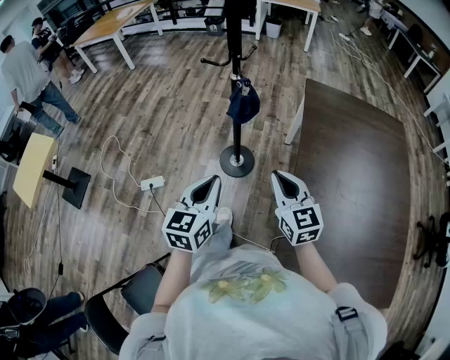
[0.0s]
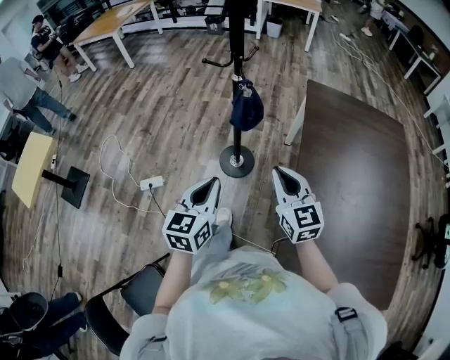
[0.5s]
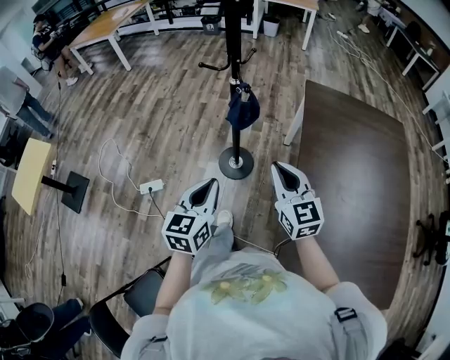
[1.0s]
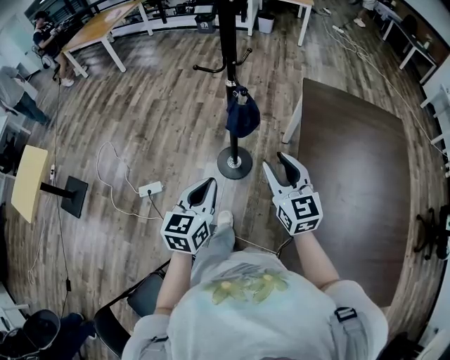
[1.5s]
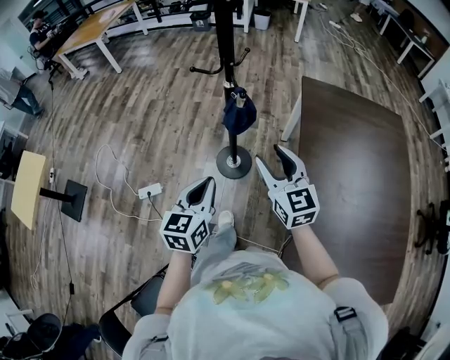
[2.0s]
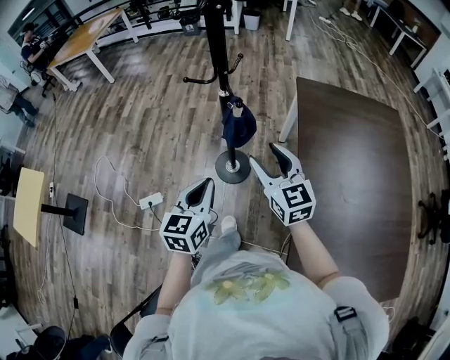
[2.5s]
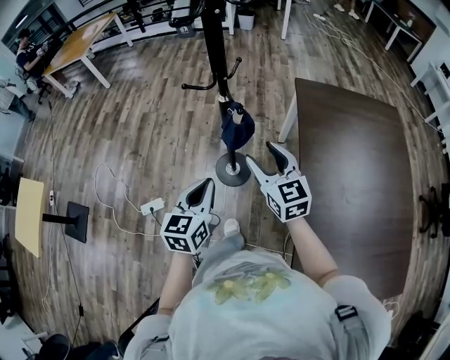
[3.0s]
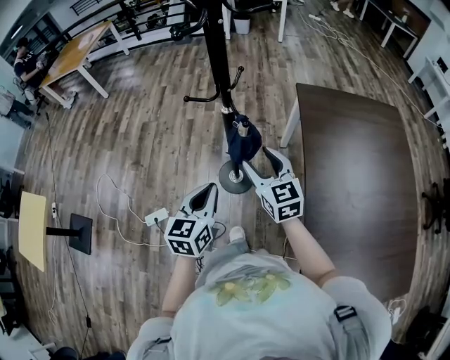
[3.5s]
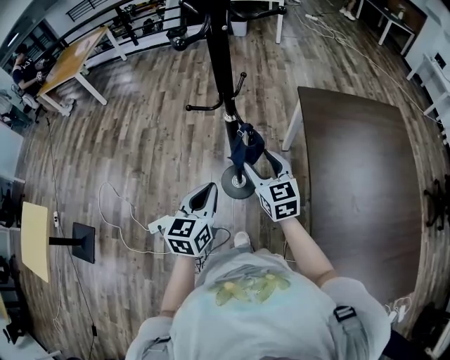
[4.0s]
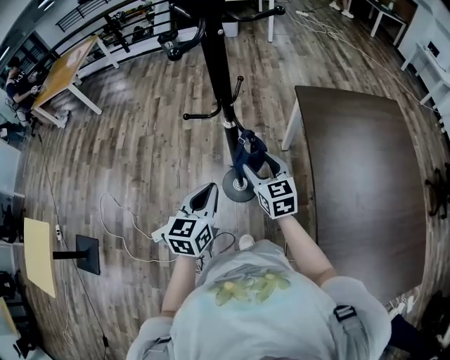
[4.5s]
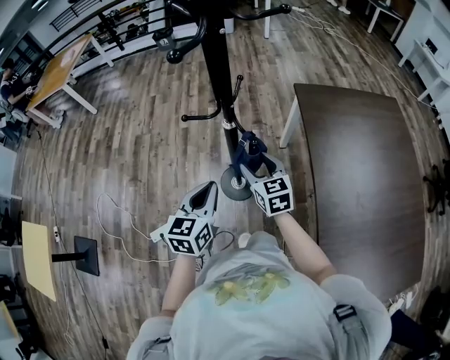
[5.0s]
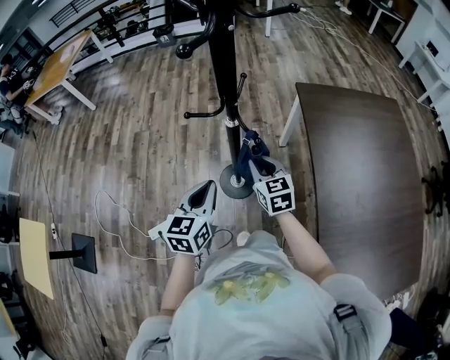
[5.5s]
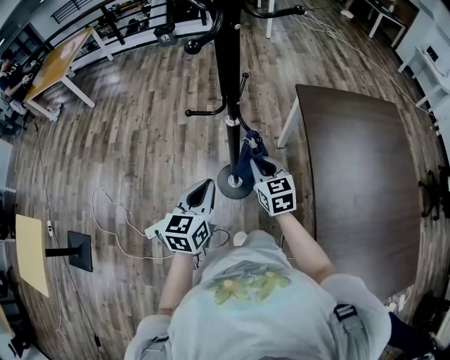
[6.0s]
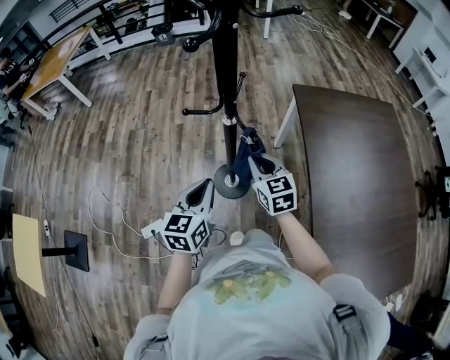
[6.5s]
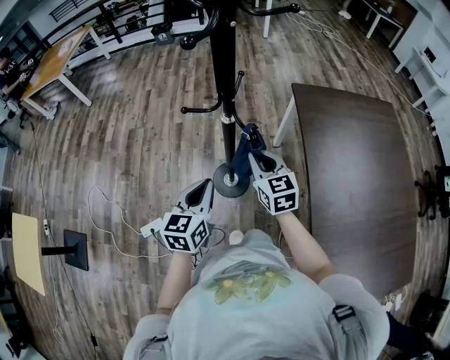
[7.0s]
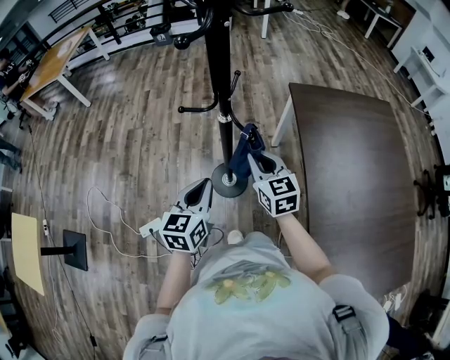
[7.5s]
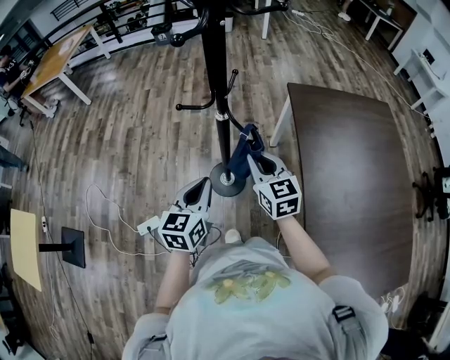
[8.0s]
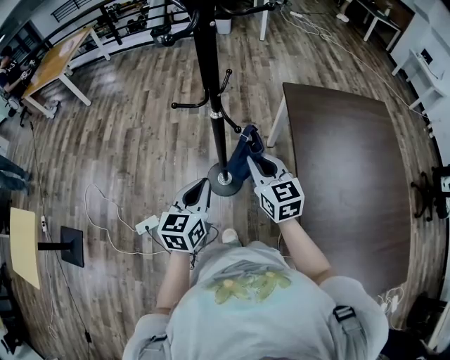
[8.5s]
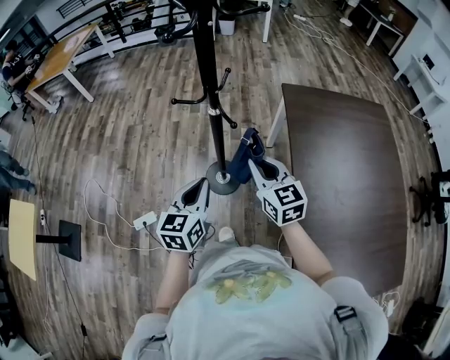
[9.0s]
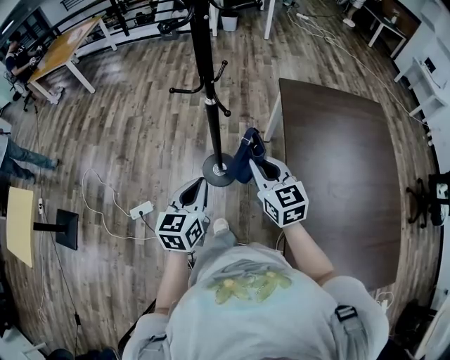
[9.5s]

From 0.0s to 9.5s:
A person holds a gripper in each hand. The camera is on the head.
From 0.0s to 2.0s: The grippers both shift forward by roughly 10 cm. The right gripper opens up.
From 2.0s to 4.0s: The left gripper moves forward, roughly 15 cm. Meanwhile the right gripper shifts approximately 15 cm forward, downward and to the left.
From 4.0s to 5.5s: The right gripper moves downward, about 5 cm, and closes up; the left gripper ends up roughly 5 cm from where it was.
From 5.5s to 7.5s: The right gripper moves upward, approximately 5 cm.
From 7.5s to 9.5s: The left gripper heads backward, covering about 10 cm; the right gripper goes roughly 15 cm backward, upward and to the right.

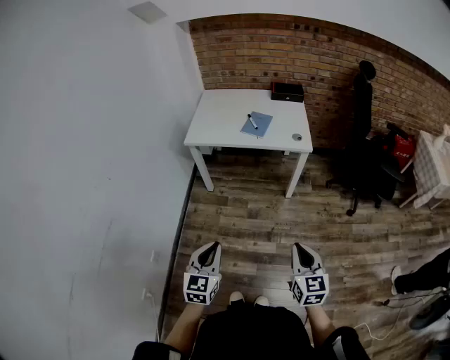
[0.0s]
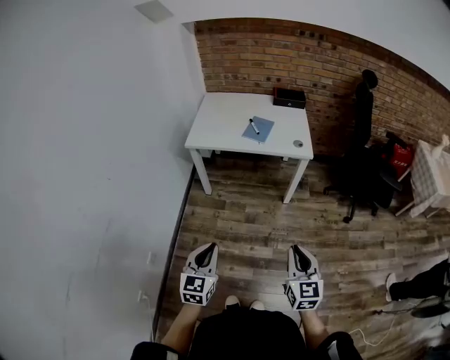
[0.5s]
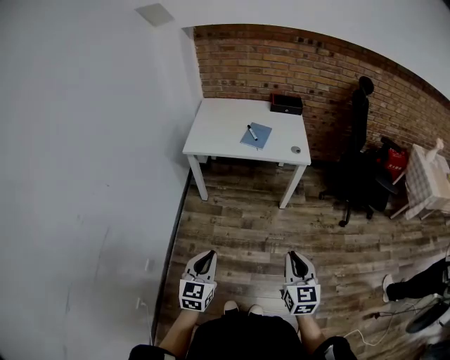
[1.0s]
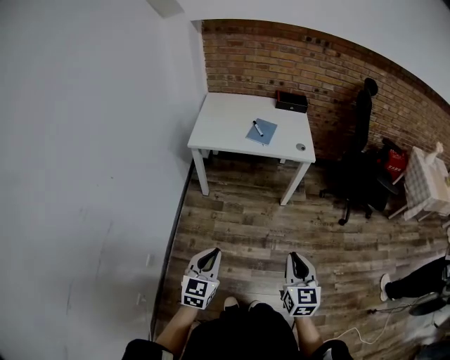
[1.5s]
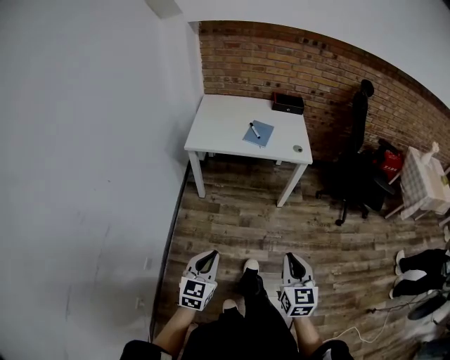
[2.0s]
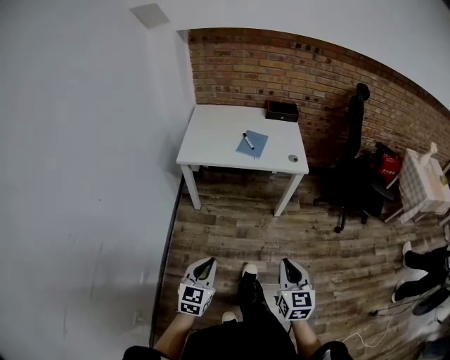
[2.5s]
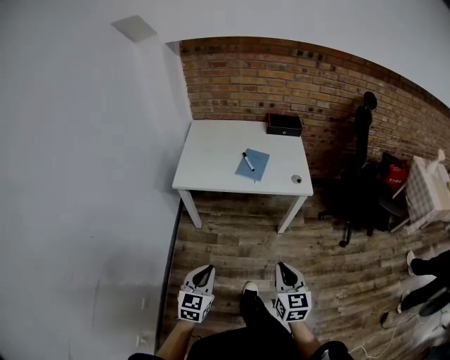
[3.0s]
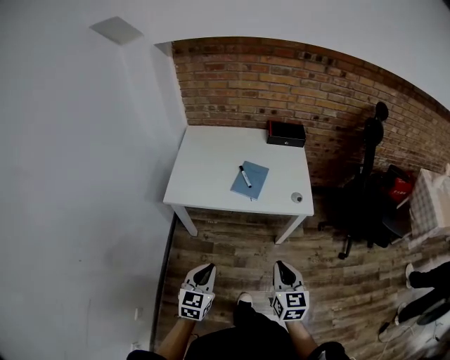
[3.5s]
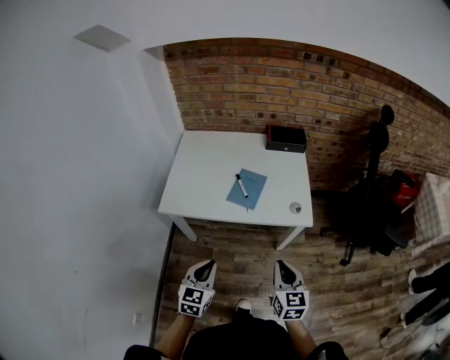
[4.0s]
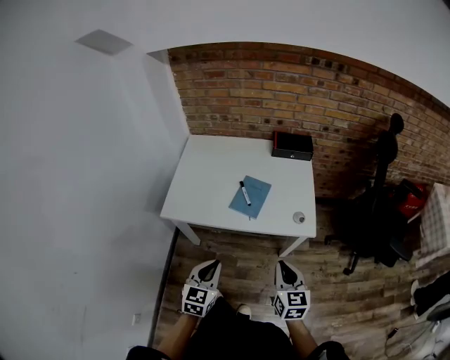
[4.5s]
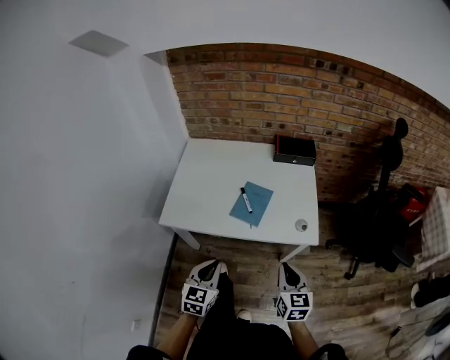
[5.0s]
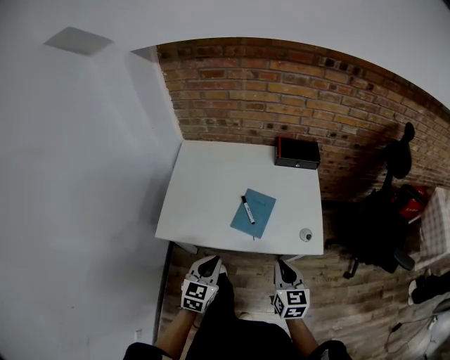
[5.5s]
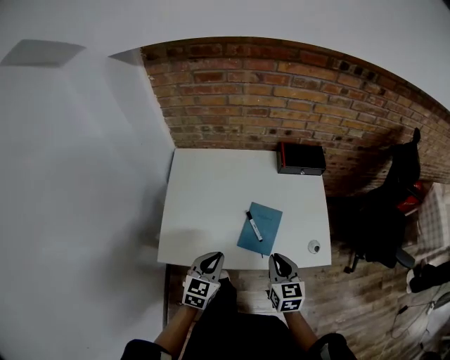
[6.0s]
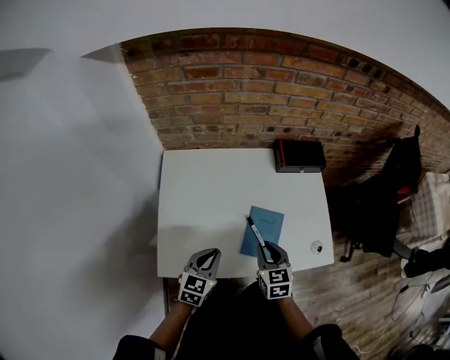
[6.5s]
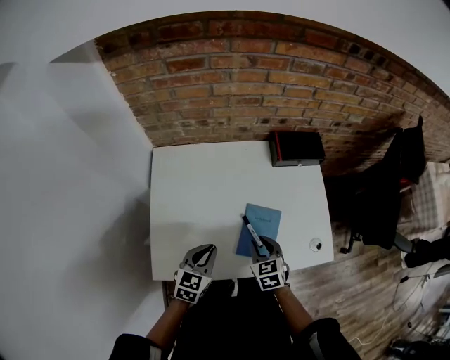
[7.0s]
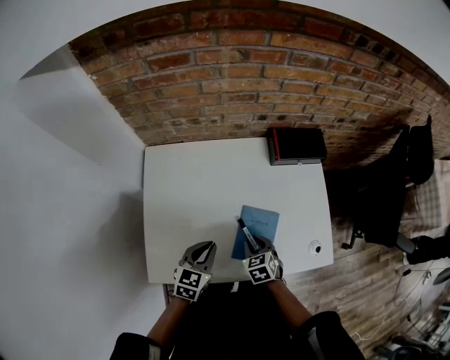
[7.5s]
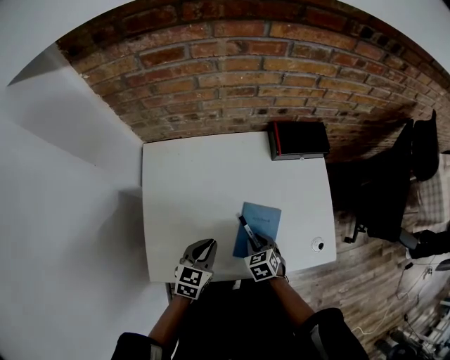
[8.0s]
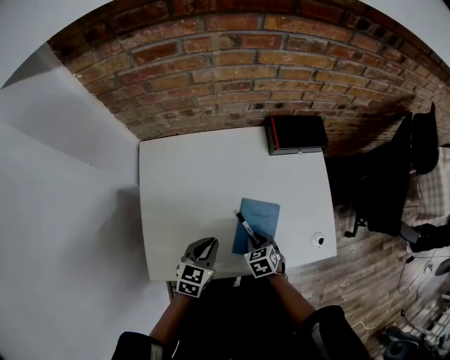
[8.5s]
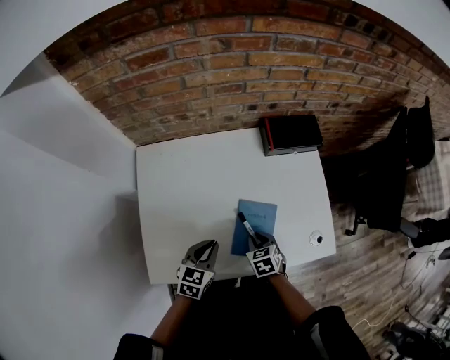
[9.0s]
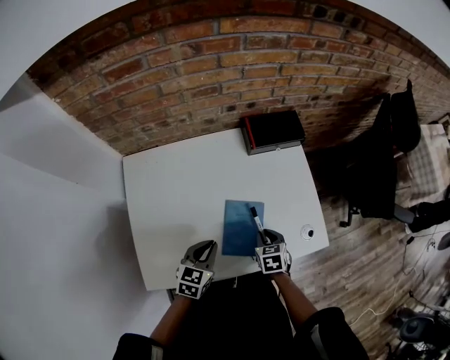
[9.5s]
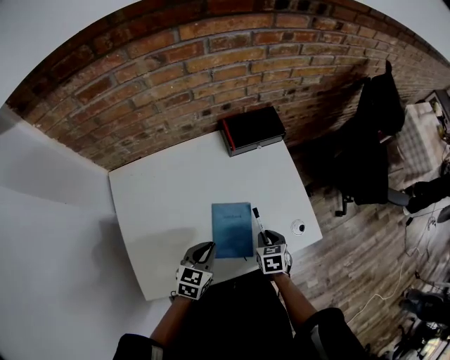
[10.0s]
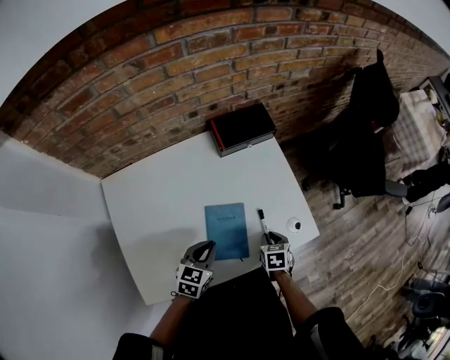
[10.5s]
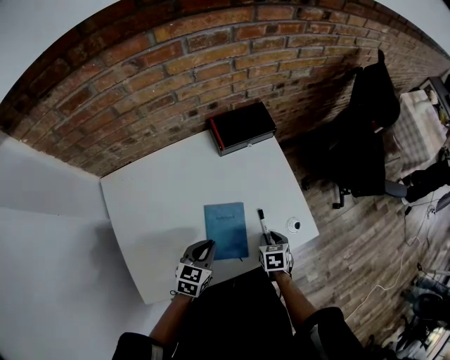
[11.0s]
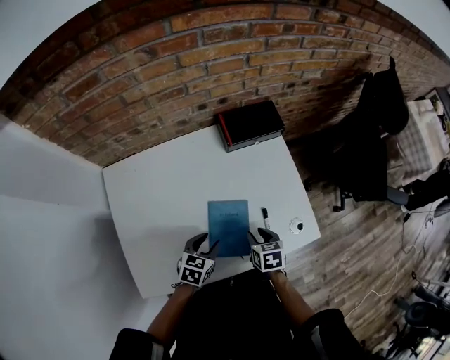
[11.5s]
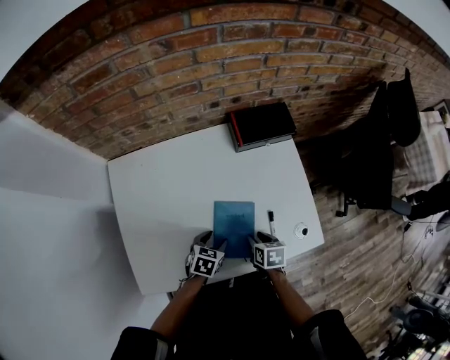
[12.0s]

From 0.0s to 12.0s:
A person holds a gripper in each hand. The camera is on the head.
From 0.0s to 2.0s: Both grippers travel together to the left, some 10 cm.
From 2.0s to 4.0s: The two grippers travel together, forward, about 40 cm.
From 4.0s to 6.0s: The left gripper heads forward, covering some 30 cm; the right gripper moves forward and to the left, roughly 30 cm.
From 6.0s to 8.0s: The left gripper is displaced forward and downward by approximately 15 cm. The right gripper travels downward and forward by some 20 cm, and points its fingers approximately 30 degrees further downward.
From 8.0s to 10.0s: The right gripper is displaced to the right by roughly 15 cm, and rotates some 30 degrees, while the left gripper shifts roughly 10 cm to the right.
From 10.0s to 12.0s: The right gripper changes its angle by roughly 20 degrees. The left gripper shifts roughly 10 cm downward, changes its angle by approximately 20 degrees, and opens up.

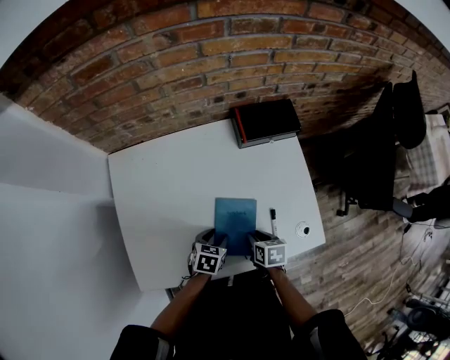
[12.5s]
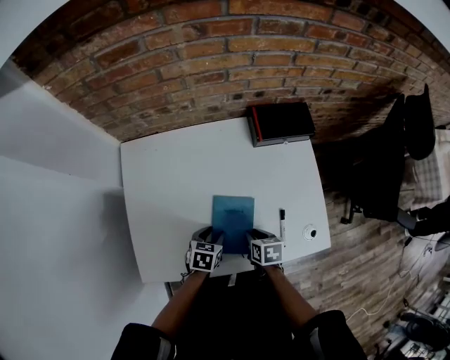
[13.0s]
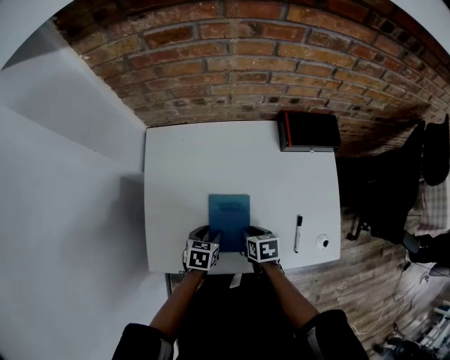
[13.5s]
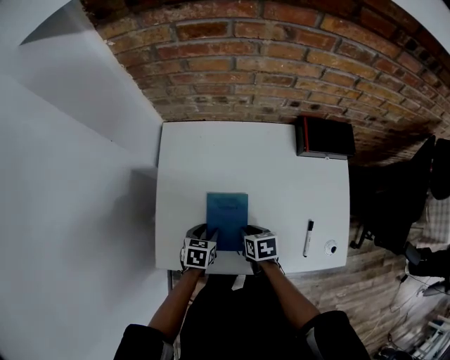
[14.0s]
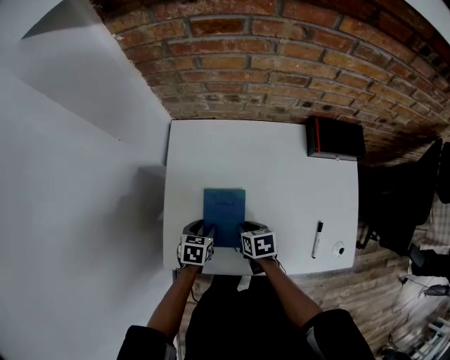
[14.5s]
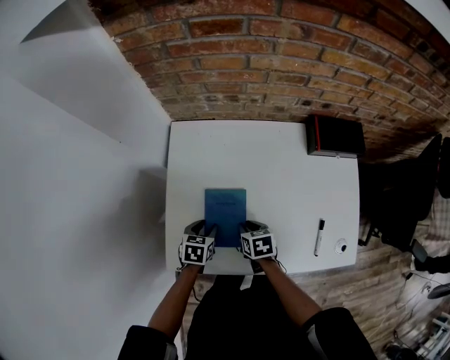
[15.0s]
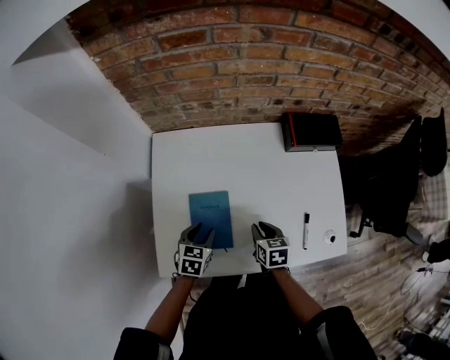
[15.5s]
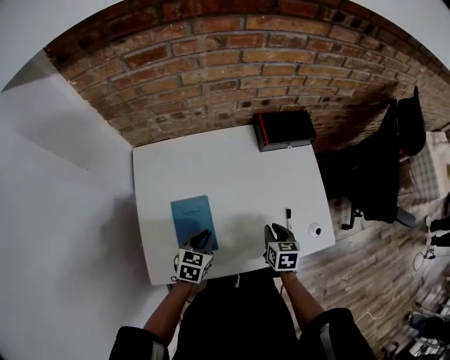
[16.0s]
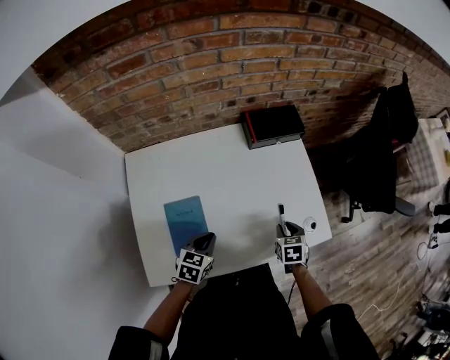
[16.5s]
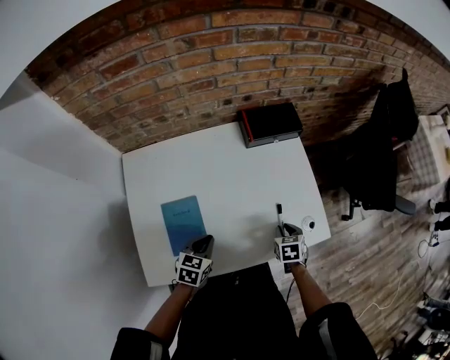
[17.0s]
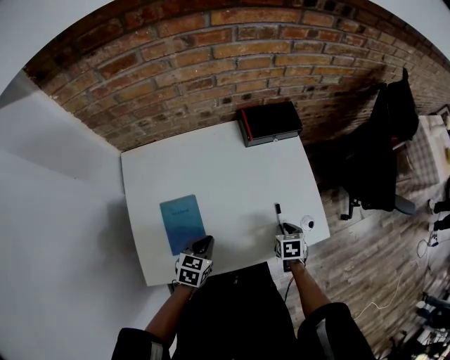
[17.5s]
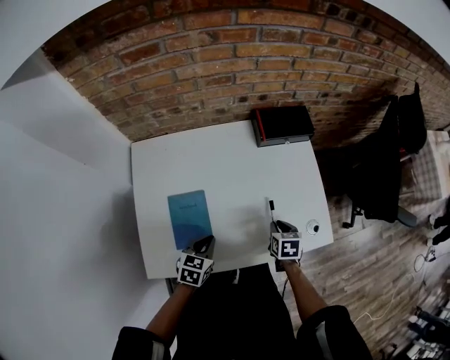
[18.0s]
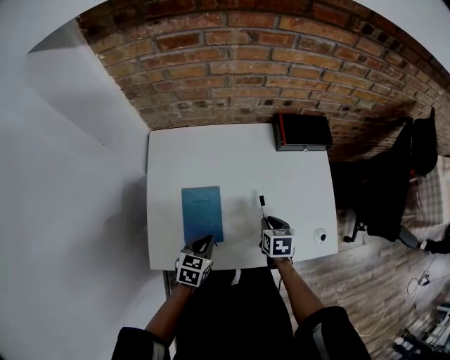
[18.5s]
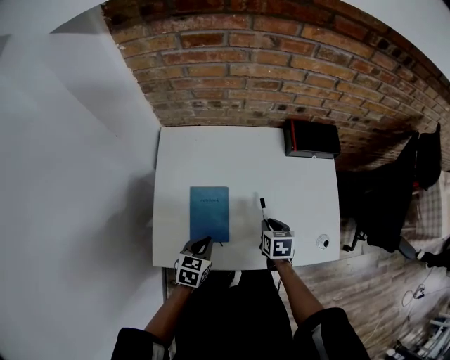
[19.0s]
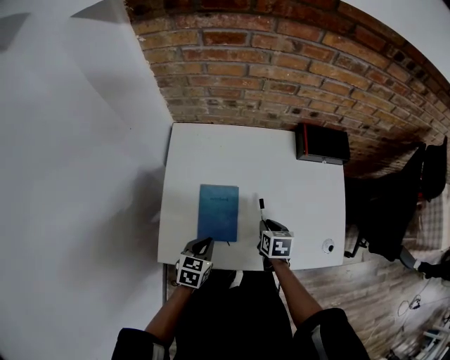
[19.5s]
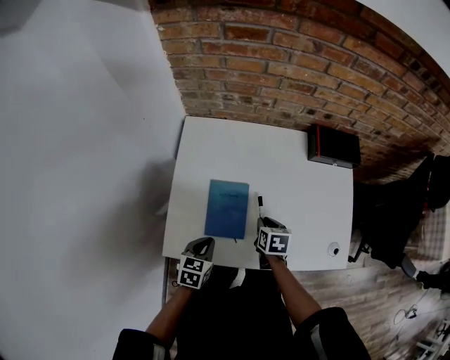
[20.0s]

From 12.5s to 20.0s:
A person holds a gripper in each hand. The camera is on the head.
From 12.5s to 14.5s: The left gripper changes place by some 20 cm, and swivels some 20 degrees; the right gripper ends up approximately 20 cm from where it was, and swivels some 20 degrees.
From 14.5s to 16.5s: The right gripper changes place by approximately 30 cm, and swivels roughly 30 degrees; the left gripper shifts by roughly 15 cm, turns by approximately 30 degrees, and closes its fingers.
From 16.5s to 18.0s: The grippers make only small movements.
From 18.0s to 20.0s: The right gripper moves to the left, roughly 20 cm. Meanwhile the left gripper goes approximately 15 cm to the left and backward.
